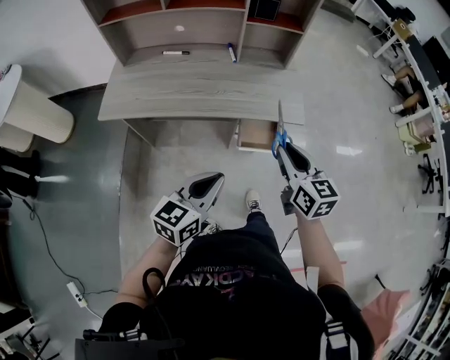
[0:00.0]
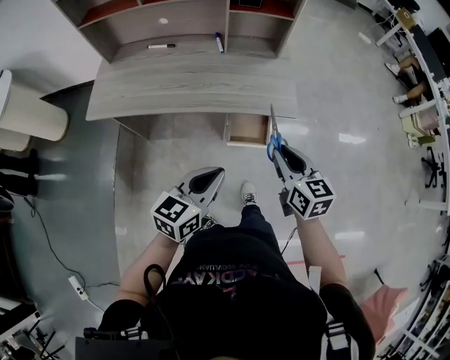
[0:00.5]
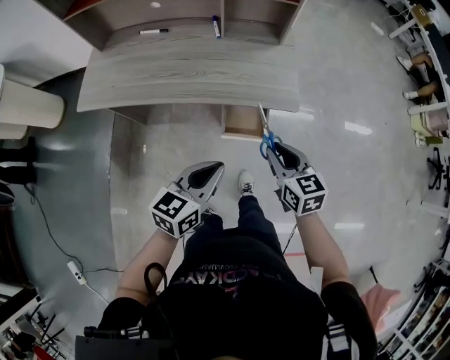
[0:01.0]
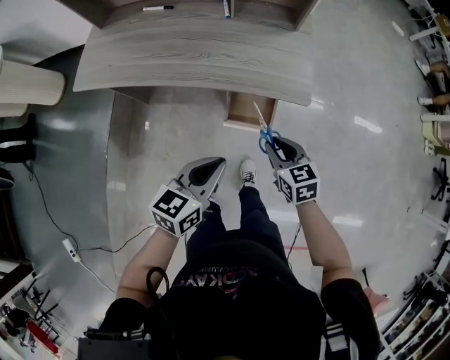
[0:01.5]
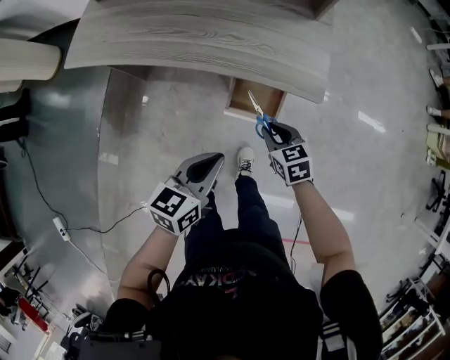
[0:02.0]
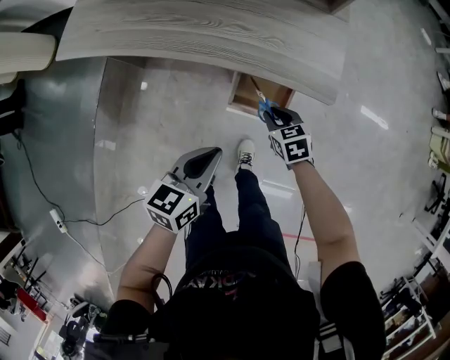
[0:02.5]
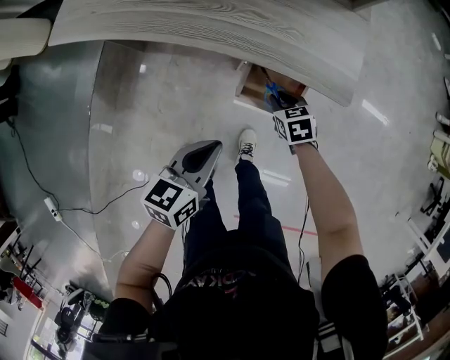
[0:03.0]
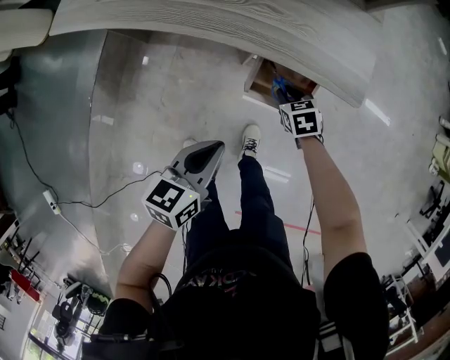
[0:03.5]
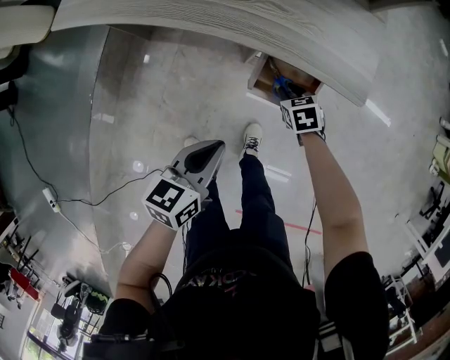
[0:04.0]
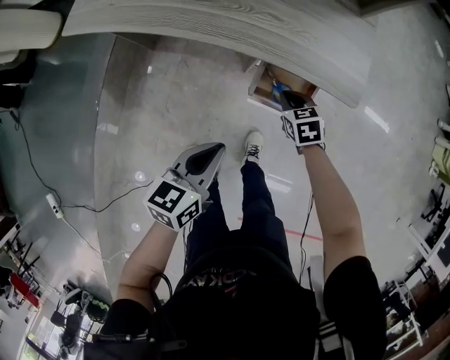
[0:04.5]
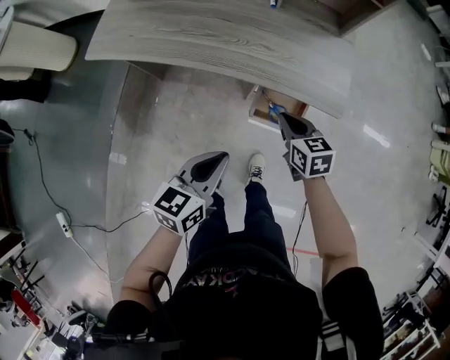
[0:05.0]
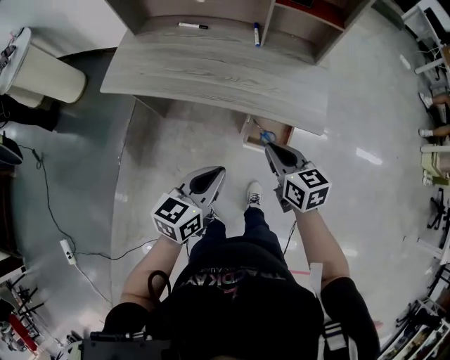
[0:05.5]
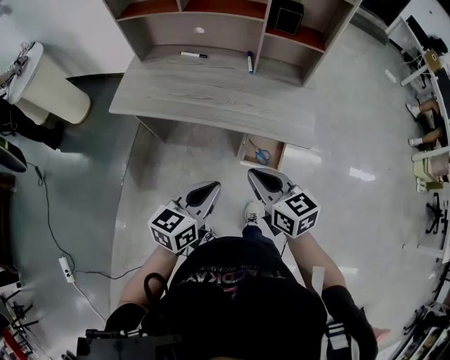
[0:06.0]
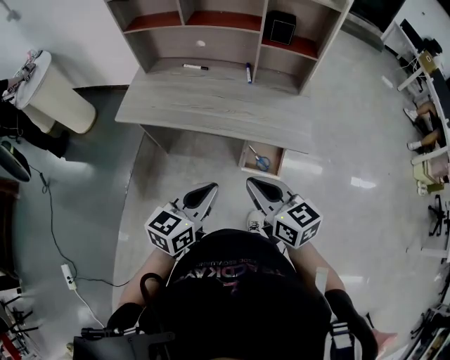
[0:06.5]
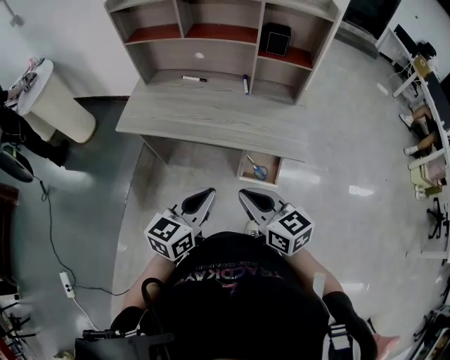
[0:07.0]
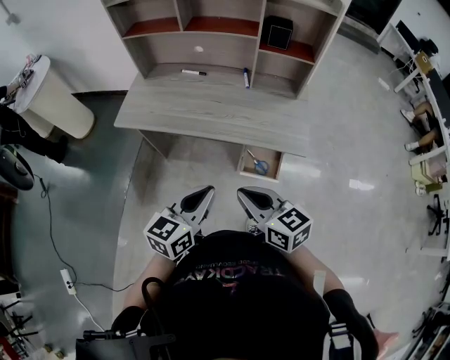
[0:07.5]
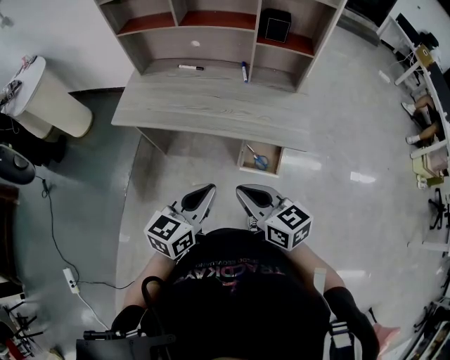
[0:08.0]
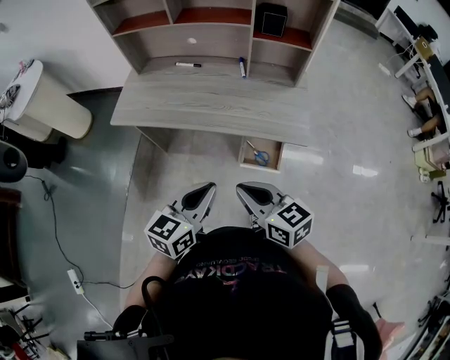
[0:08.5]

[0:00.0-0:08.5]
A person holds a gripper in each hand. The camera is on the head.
0:00.0 to 0:02.0: The right gripper shifts about 25 cm downward, and turns by approximately 40 degrees, while the left gripper shifts roughly 15 cm downward and to the right, and changes its angle by approximately 20 degrees.
0:02.0 to 0:04.0: The left gripper travels downward by some 5 cm. The right gripper travels downward and forward by approximately 15 cm.
0:04.0 to 0:06.5: The left gripper travels upward by some 20 cm, and rotates about 20 degrees. Meanwhile the right gripper goes roughly 40 cm upward, points its fingers about 50 degrees further upward, and closes its fingers.
0:06.5 to 0:08.5: The grippers stay close to where they were, moving slightly.

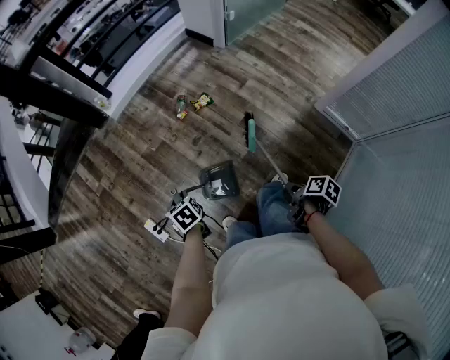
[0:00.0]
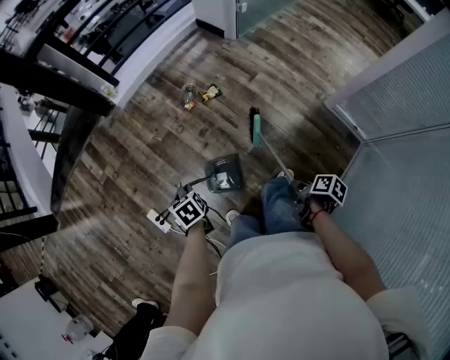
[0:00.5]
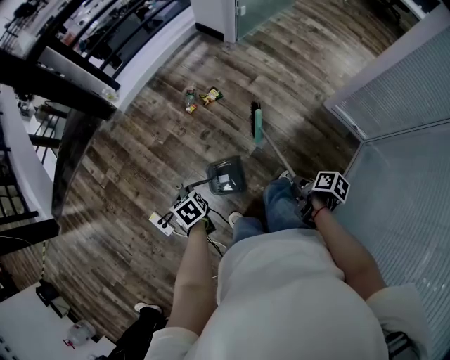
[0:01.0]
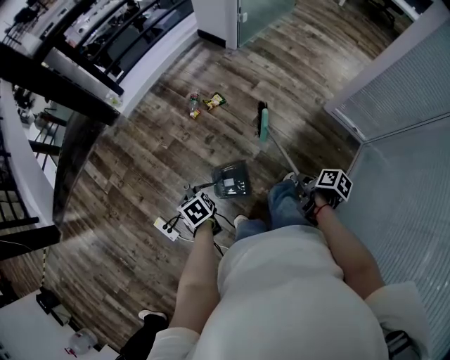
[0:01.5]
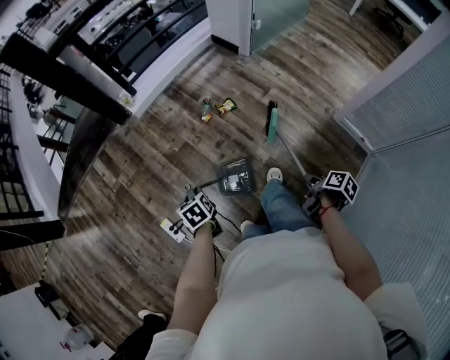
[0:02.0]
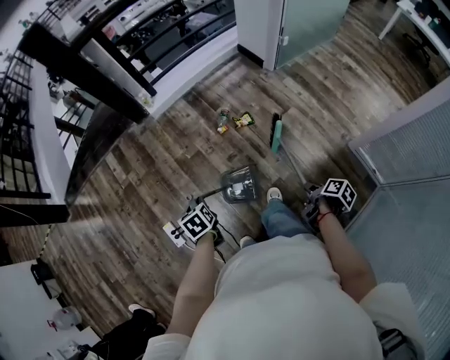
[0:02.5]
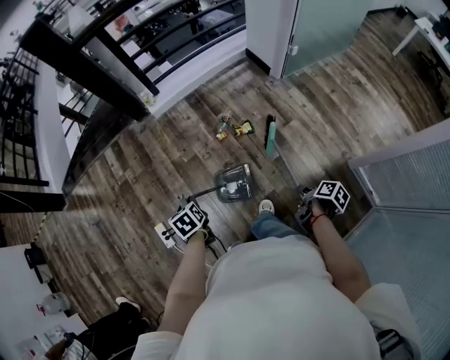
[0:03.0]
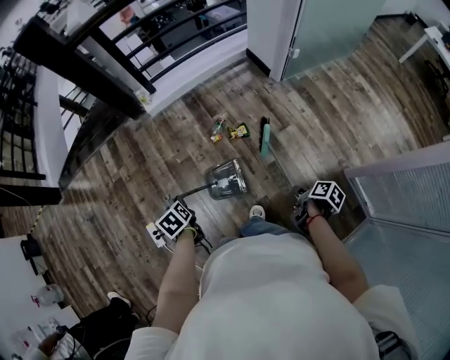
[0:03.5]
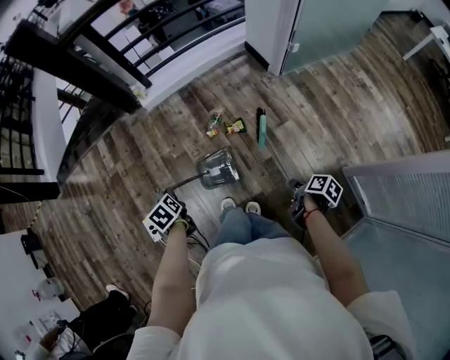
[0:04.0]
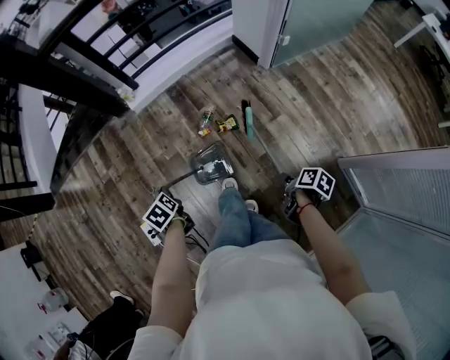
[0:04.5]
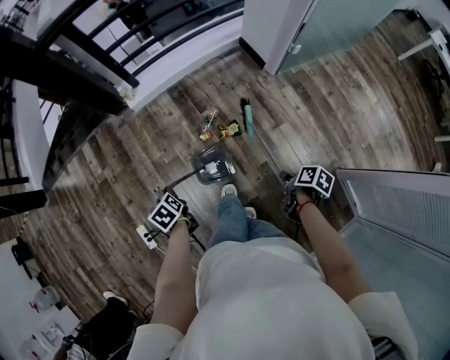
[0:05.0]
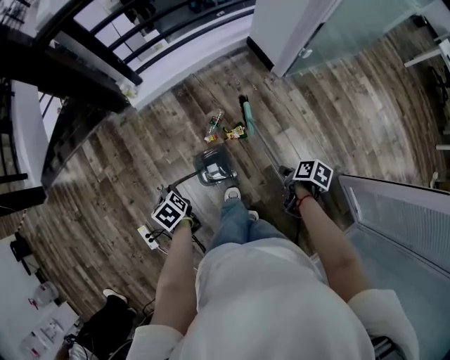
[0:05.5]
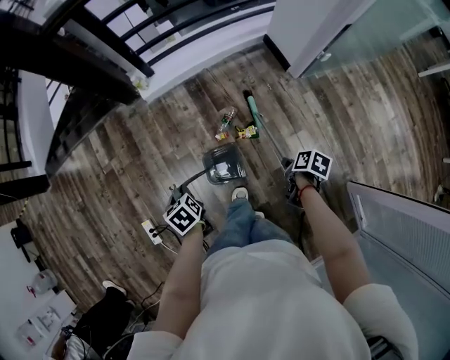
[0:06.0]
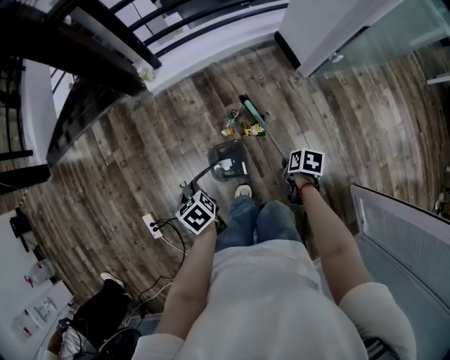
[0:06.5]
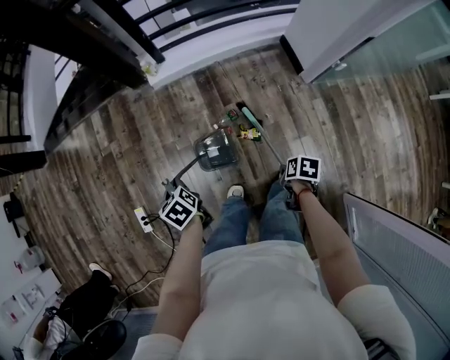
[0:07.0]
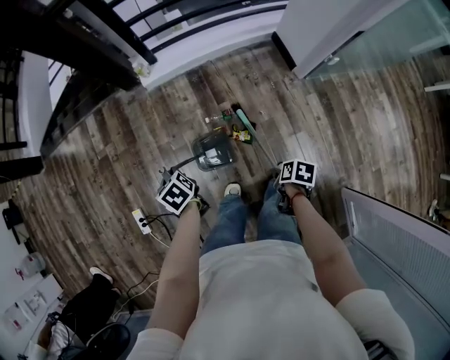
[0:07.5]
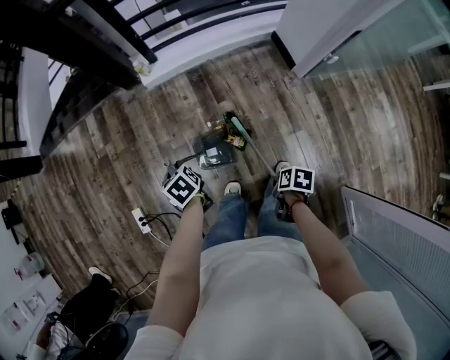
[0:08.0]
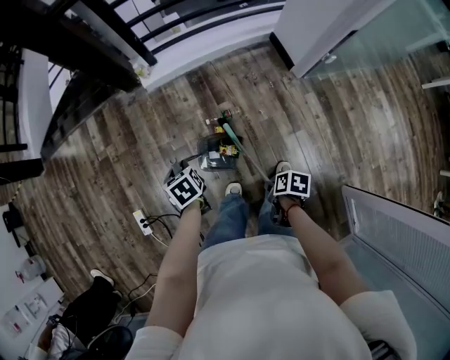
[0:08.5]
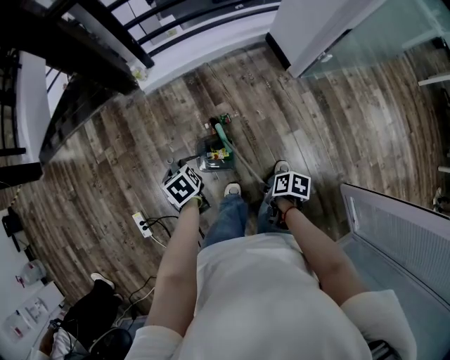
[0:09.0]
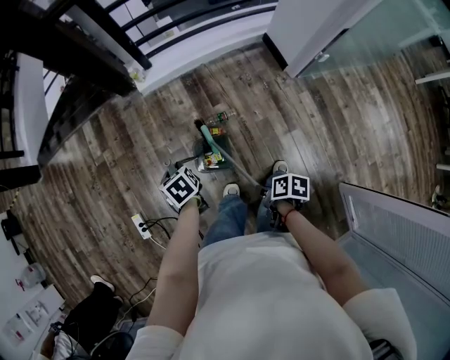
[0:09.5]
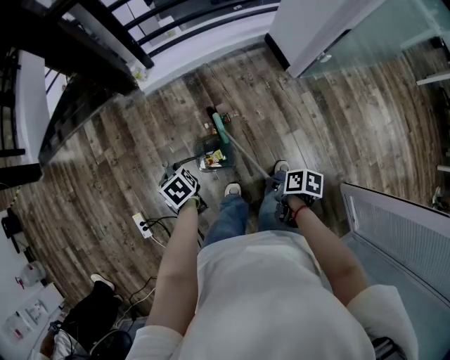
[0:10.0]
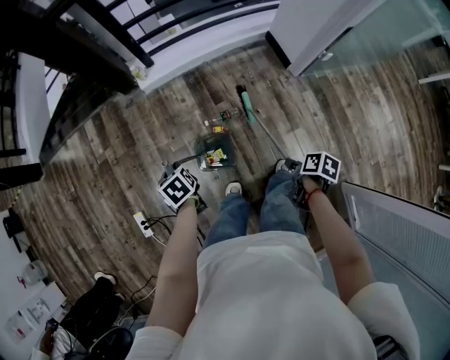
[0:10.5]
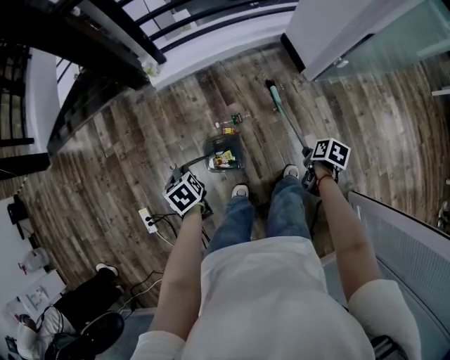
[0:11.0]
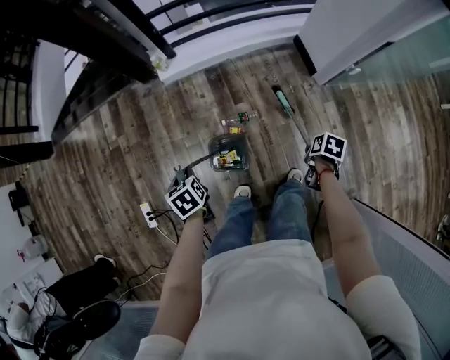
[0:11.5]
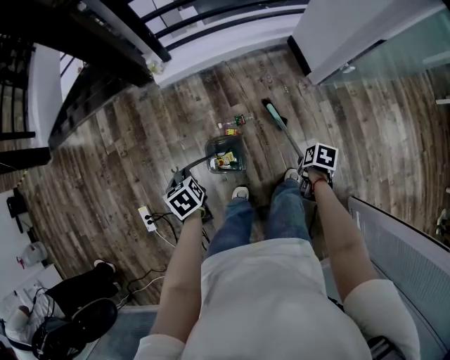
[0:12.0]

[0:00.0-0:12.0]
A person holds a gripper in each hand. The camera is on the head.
0:00.0 to 0:02.0: The left gripper moves roughly 5 cm.
0:02.0 to 0:04.0: The left gripper ends up roughly 20 cm from where it was, and changes its angle by roughly 30 degrees.
0:04.0 to 0:06.0: The left gripper changes place by approximately 15 cm.

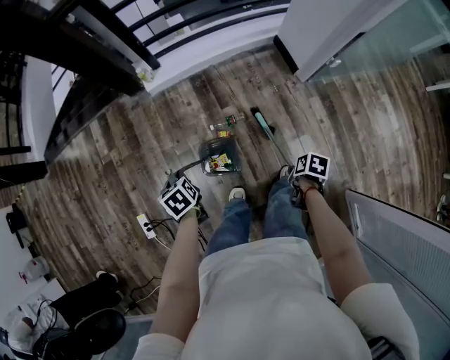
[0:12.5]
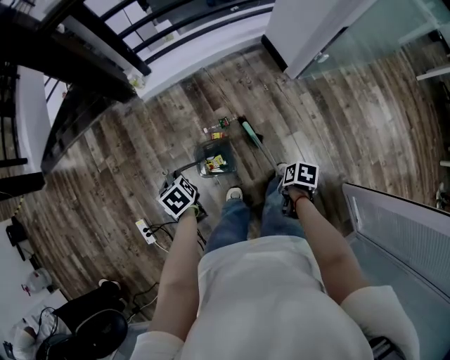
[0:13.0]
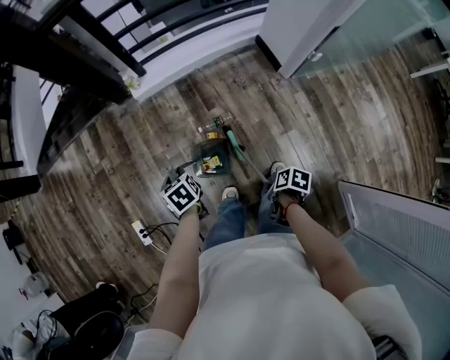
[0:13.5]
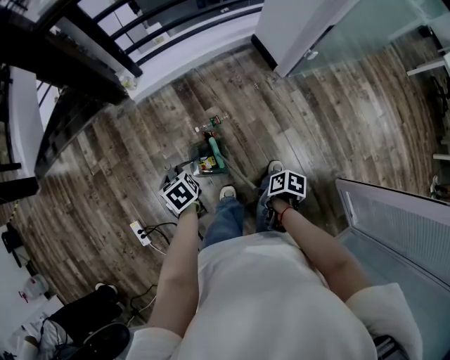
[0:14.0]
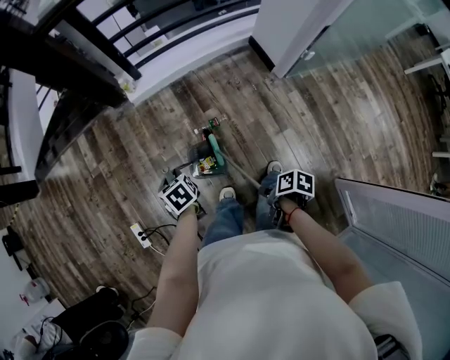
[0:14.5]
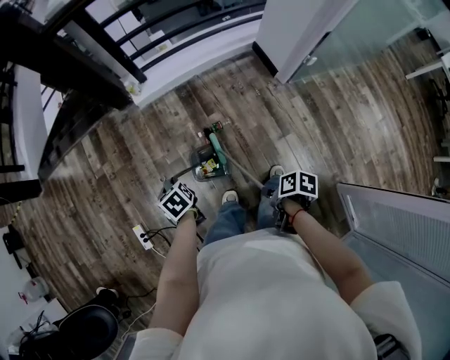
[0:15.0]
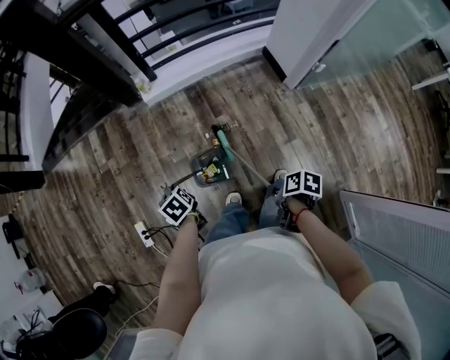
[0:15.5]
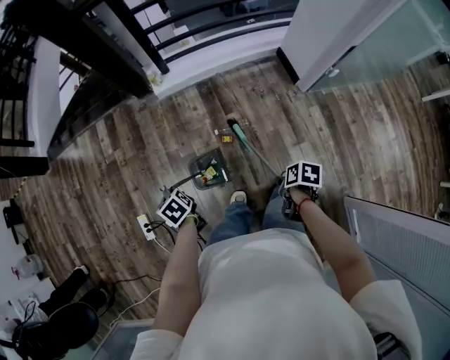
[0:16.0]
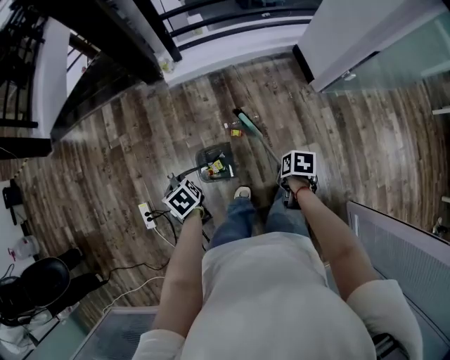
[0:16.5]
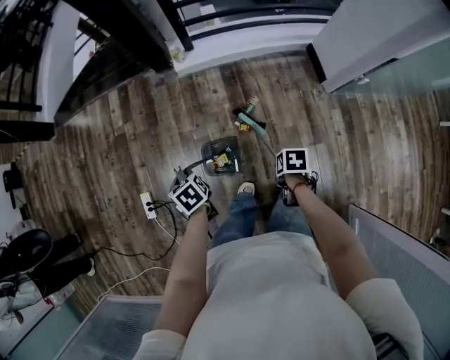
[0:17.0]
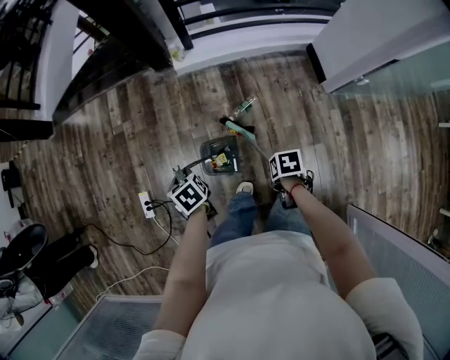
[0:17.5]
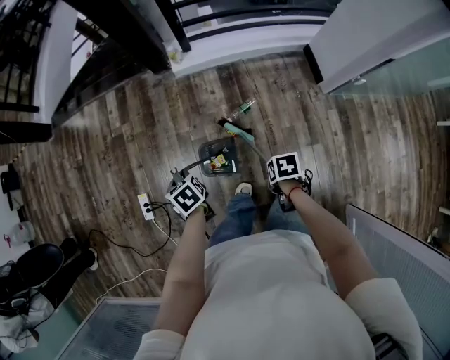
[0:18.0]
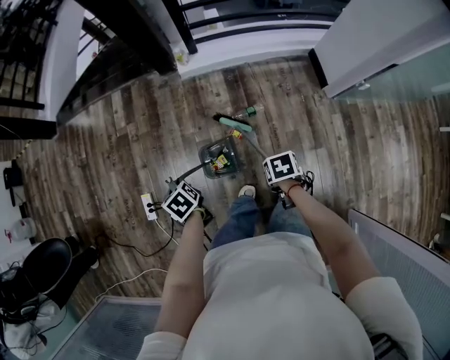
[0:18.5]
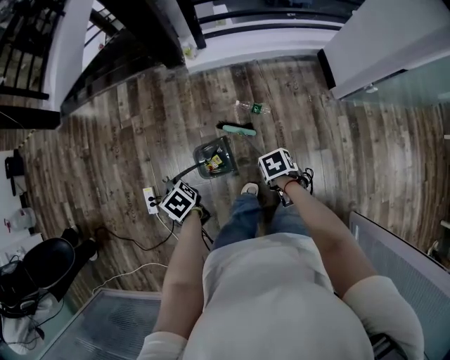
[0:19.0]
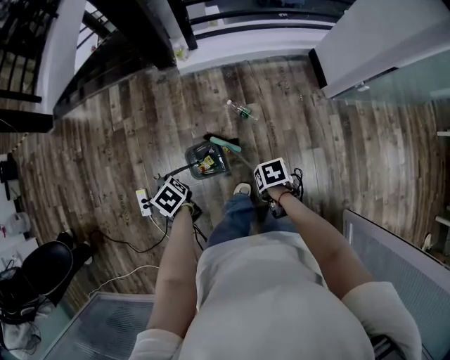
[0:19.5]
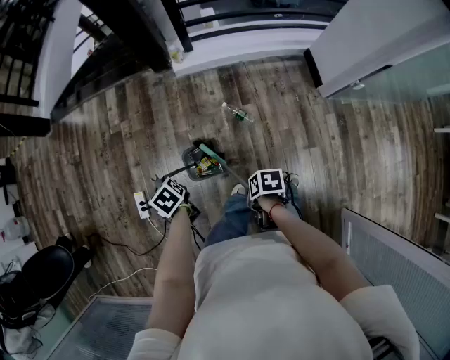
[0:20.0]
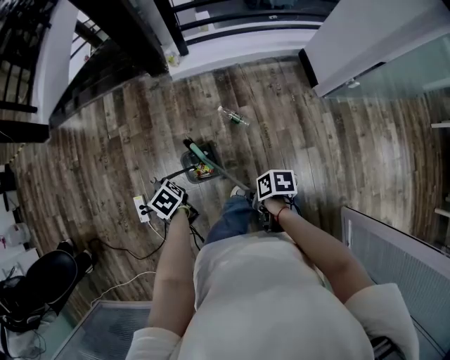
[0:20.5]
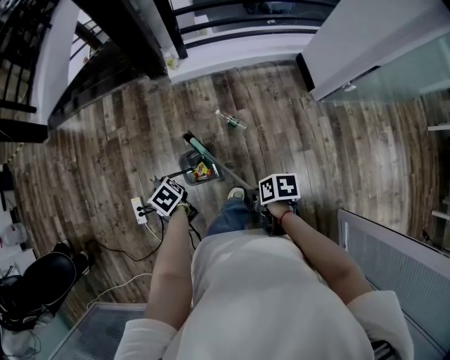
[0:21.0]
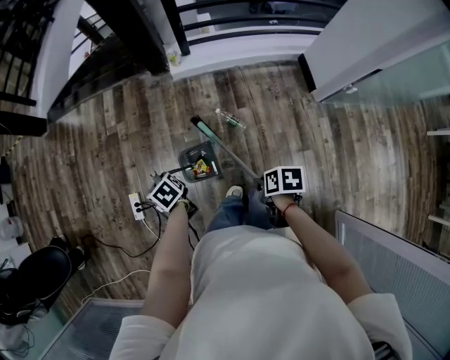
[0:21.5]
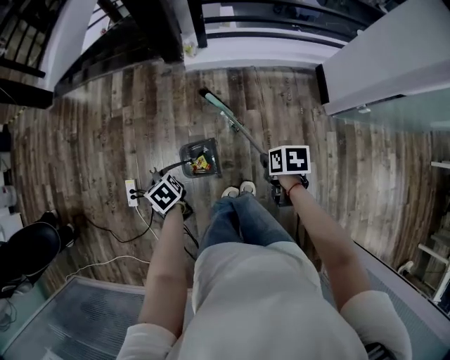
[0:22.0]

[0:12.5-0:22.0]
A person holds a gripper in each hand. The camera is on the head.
0:14.5 to 0:16.5: The left gripper changes place by roughly 10 cm.
0:18.0 to 0:20.0: The left gripper shifts by about 5 cm.
